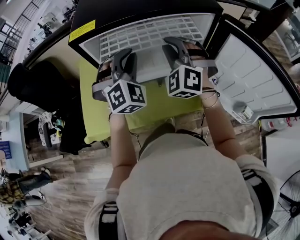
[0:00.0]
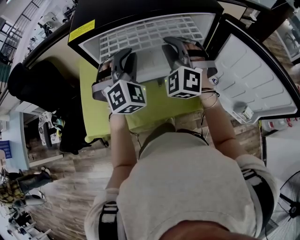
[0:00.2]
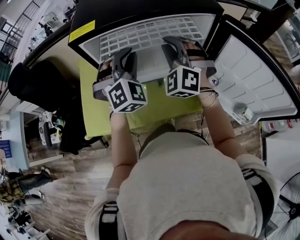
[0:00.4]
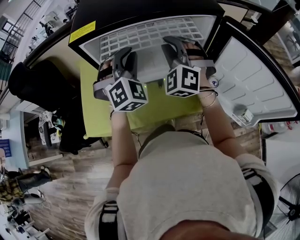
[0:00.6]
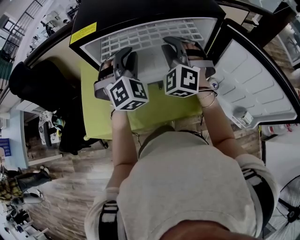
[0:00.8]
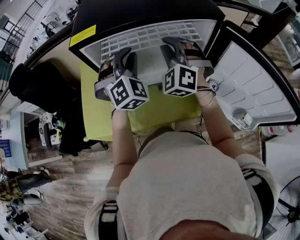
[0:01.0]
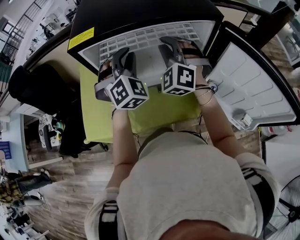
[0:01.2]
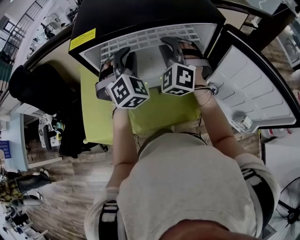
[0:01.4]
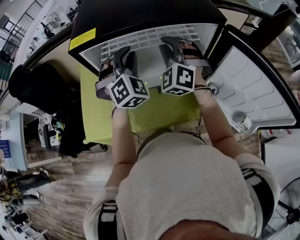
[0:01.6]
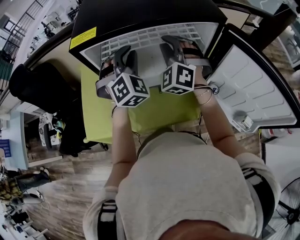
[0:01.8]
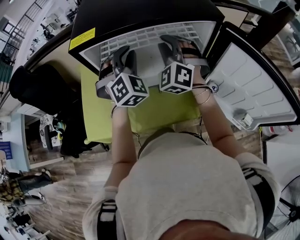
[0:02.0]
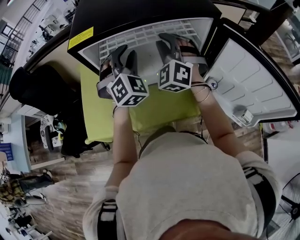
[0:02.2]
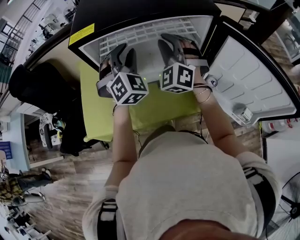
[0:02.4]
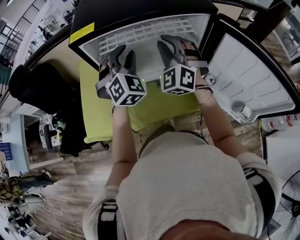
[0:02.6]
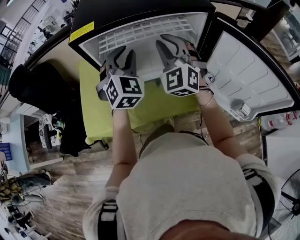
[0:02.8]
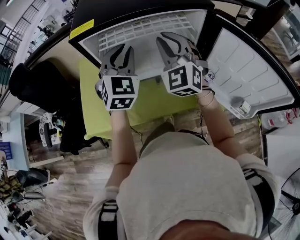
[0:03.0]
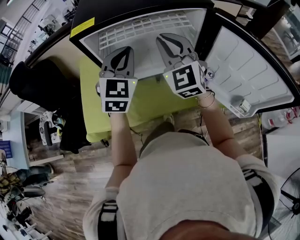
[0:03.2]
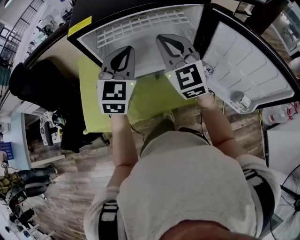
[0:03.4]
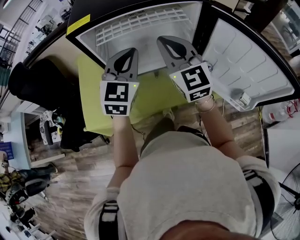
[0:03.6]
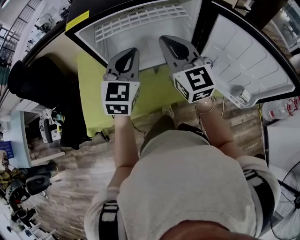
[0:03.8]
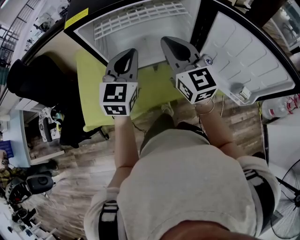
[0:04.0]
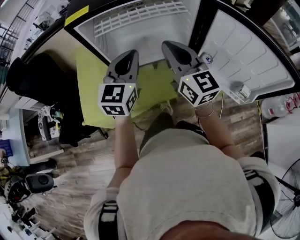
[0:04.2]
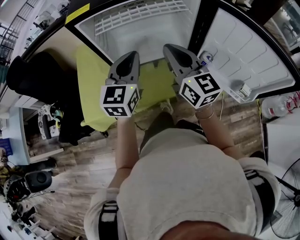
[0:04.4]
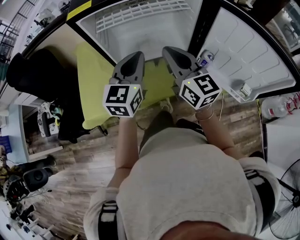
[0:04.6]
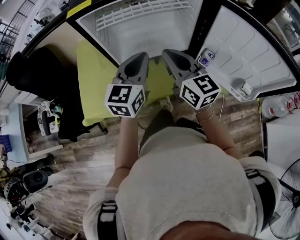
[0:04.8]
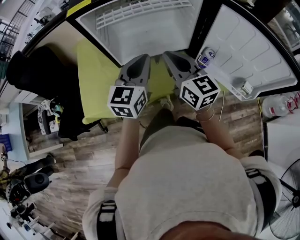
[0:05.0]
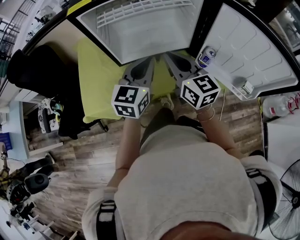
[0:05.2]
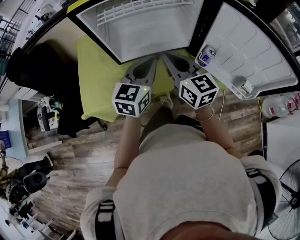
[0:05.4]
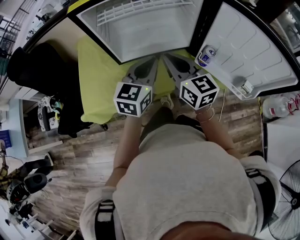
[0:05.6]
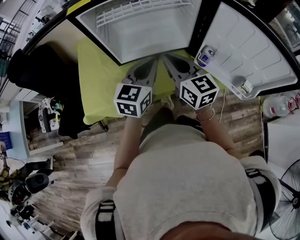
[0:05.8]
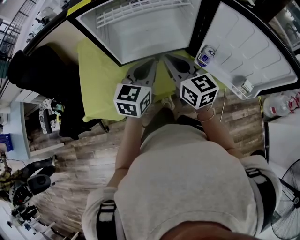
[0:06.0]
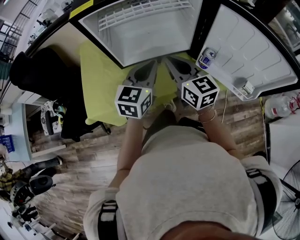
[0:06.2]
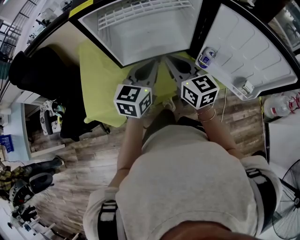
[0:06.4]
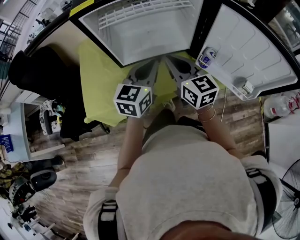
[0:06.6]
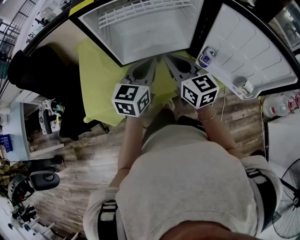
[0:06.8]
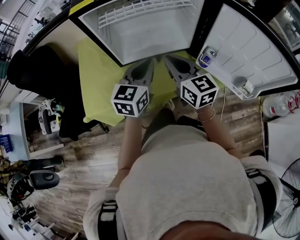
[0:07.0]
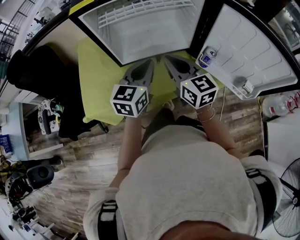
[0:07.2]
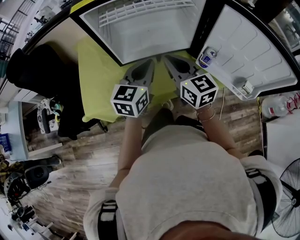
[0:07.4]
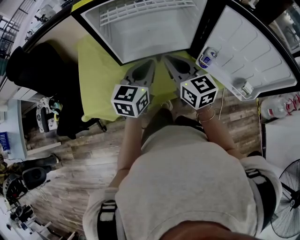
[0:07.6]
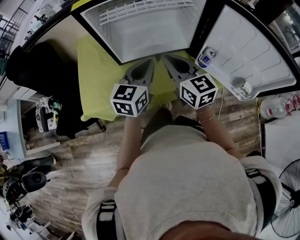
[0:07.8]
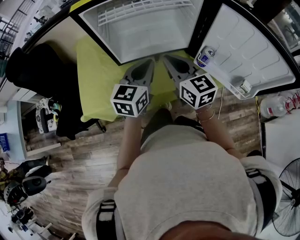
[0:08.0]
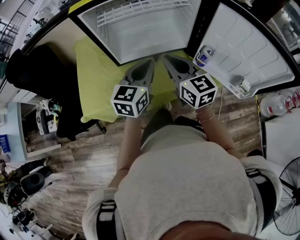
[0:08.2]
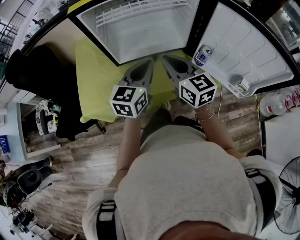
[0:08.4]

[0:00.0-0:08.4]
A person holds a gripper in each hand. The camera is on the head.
0:00.0 to 0:01.4: There are only small adjustments of the grippers.
0:01.4 to 0:02.8: The right gripper goes some 5 cm backward, and rotates roughly 20 degrees.
0:02.8 to 0:04.2: Both grippers move backward, some 10 cm. The right gripper rotates around the line of its fingers by approximately 50 degrees, clockwise from behind, while the left gripper rotates some 40 degrees, and closes its fingers.
0:04.2 to 0:05.6: Both grippers travel together downward, roughly 5 cm.
0:05.6 to 0:08.4: The grippers stay close to where they were, moving slightly.

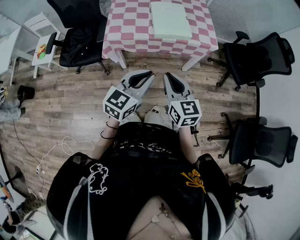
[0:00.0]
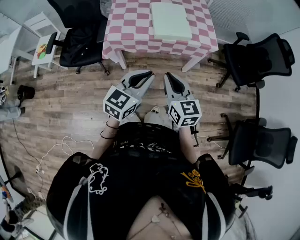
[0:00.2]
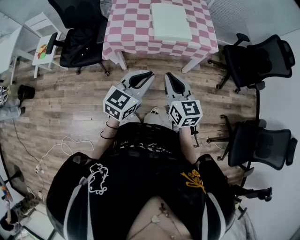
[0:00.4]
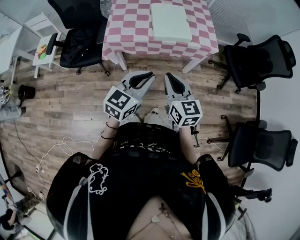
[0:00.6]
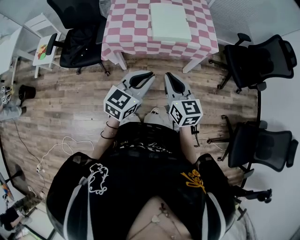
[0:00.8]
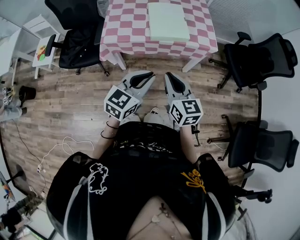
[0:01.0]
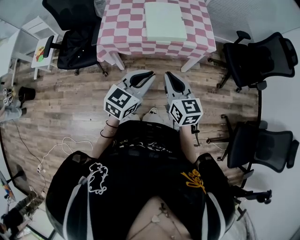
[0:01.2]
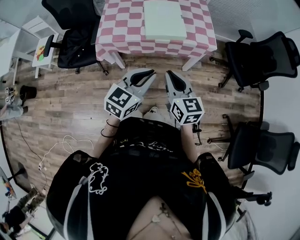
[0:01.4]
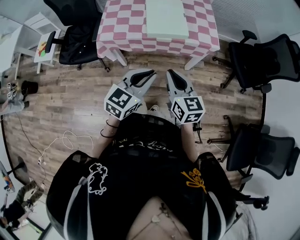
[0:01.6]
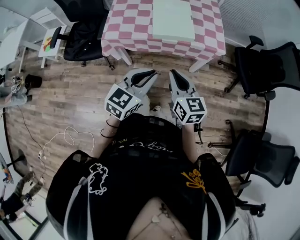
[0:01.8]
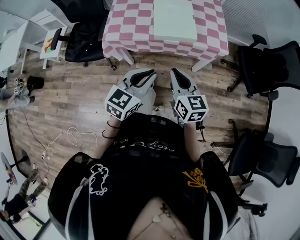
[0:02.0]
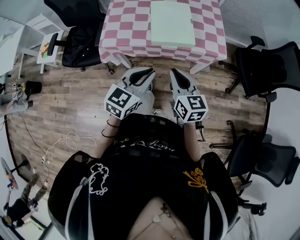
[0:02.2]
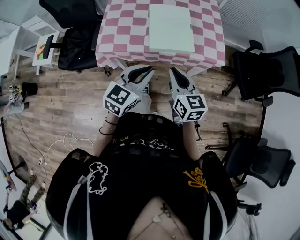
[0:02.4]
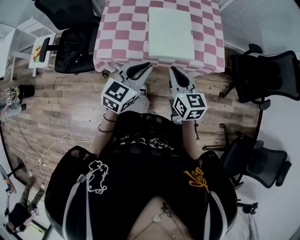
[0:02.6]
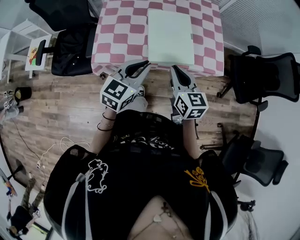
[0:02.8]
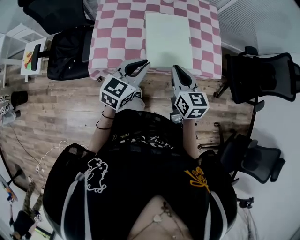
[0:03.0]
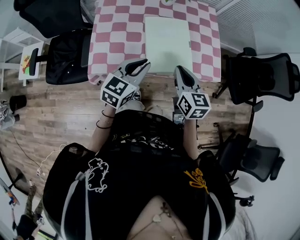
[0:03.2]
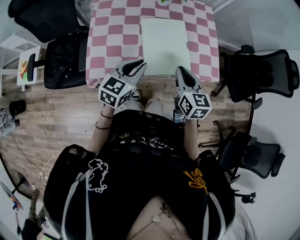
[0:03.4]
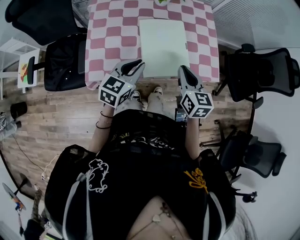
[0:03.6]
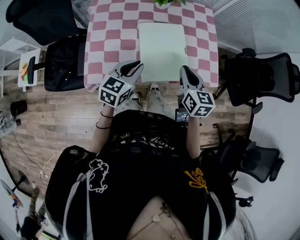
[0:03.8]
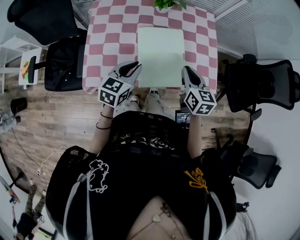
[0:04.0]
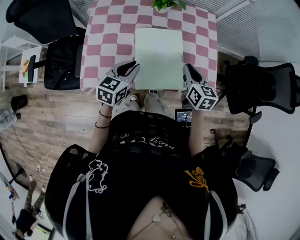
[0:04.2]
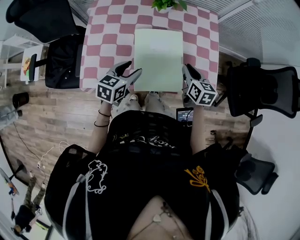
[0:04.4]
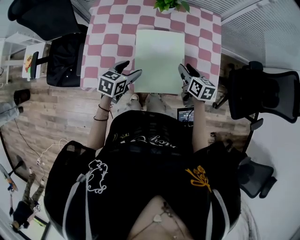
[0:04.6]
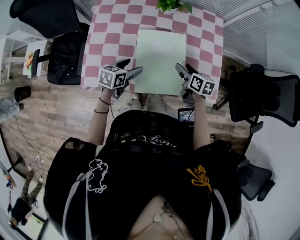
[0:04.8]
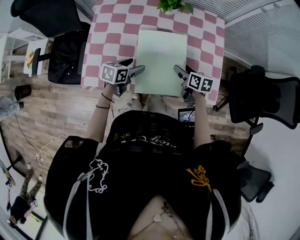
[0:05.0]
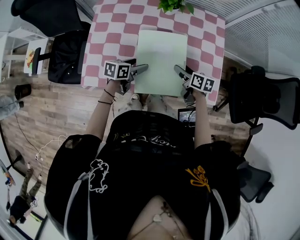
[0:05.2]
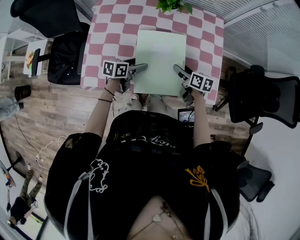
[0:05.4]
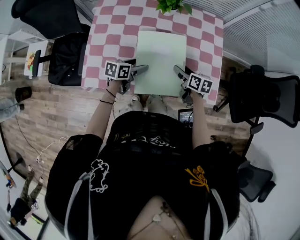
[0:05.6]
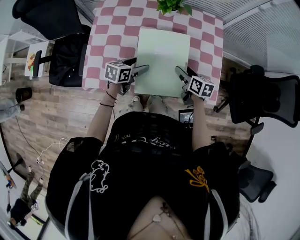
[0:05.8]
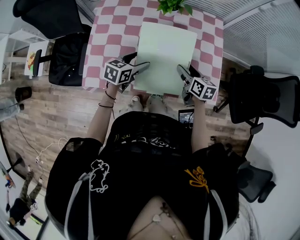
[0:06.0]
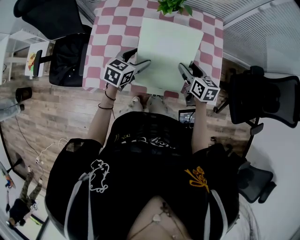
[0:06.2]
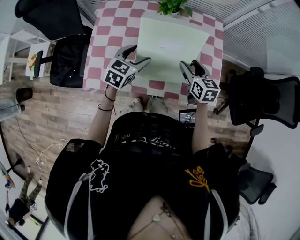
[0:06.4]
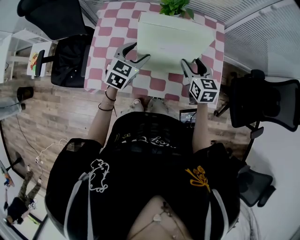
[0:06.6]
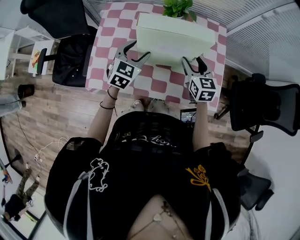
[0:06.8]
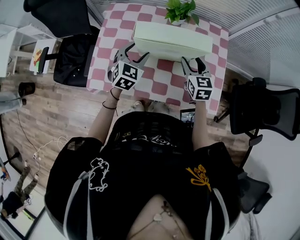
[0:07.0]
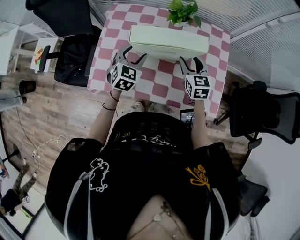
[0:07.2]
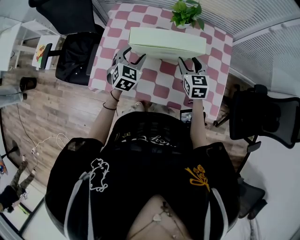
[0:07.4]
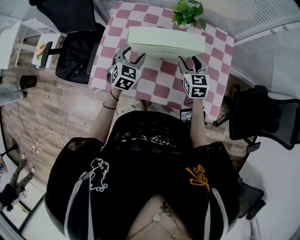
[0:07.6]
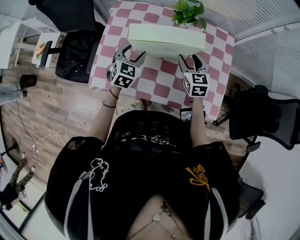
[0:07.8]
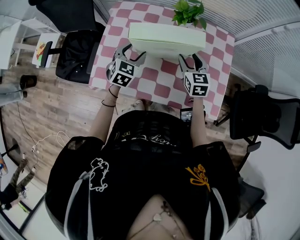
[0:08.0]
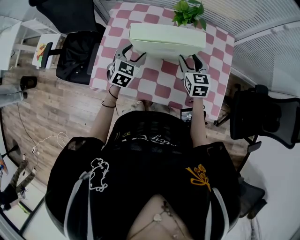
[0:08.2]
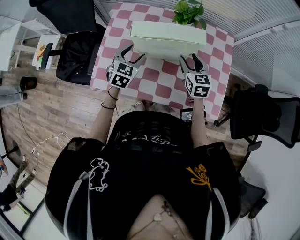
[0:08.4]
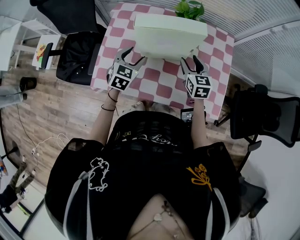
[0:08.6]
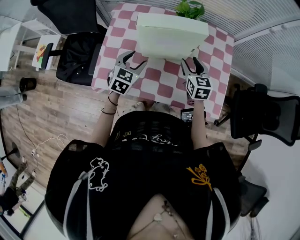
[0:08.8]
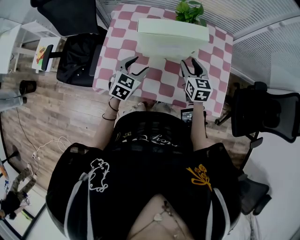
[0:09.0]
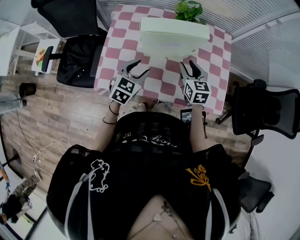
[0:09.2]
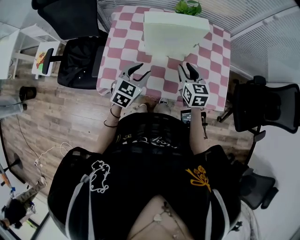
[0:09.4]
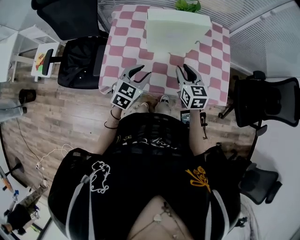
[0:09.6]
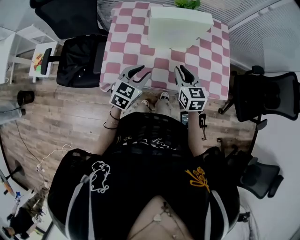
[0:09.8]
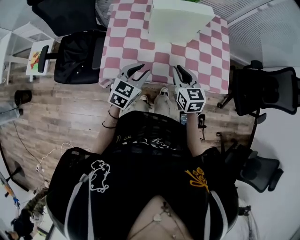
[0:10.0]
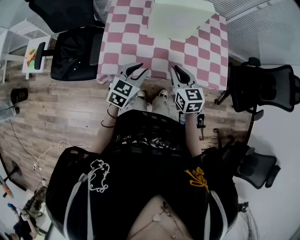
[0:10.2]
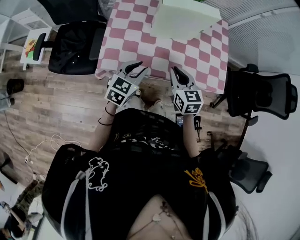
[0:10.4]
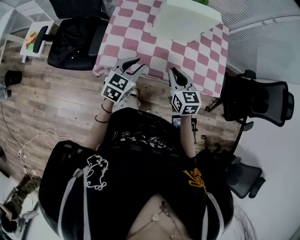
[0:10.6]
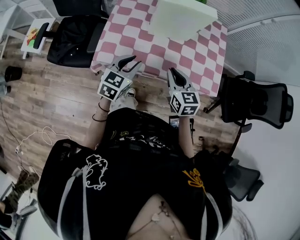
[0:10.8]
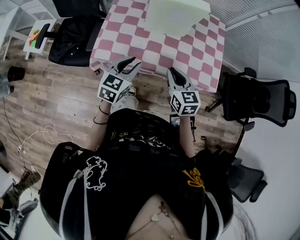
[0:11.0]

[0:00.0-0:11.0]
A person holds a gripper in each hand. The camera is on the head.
0:00.0 to 0:01.6: The two grippers go roughly 10 cm to the right and forward.
0:01.6 to 0:03.2: Both grippers move forward, about 30 cm.
0:03.2 to 0:04.8: The left gripper moves downward and forward, roughly 20 cm, changes its angle by approximately 30 degrees, and opens its fingers; the right gripper is displaced forward and downward by roughly 25 cm, turns by some 30 degrees, and opens its fingers.
0:04.8 to 0:06.2: The grippers both shift upward by roughly 5 cm.
0:06.2 to 0:07.8: The right gripper travels forward and to the left by some 10 cm, and swivels about 30 degrees. The left gripper travels to the left and forward by about 10 cm, and swivels some 30 degrees.
0:07.8 to 0:09.4: Both grippers move backward, about 10 cm.
0:09.4 to 0:11.0: Both grippers travel together backward, about 15 cm. The right gripper closes its fingers.

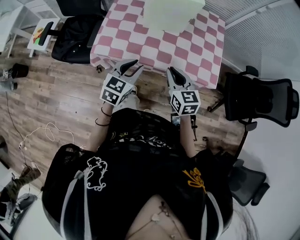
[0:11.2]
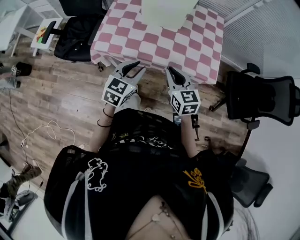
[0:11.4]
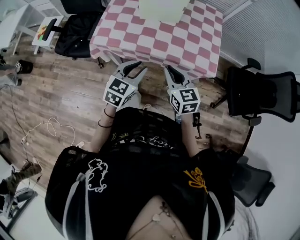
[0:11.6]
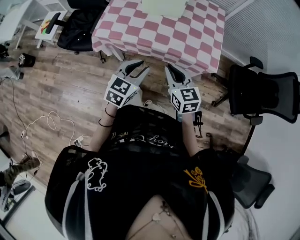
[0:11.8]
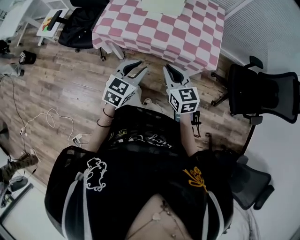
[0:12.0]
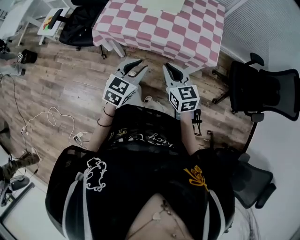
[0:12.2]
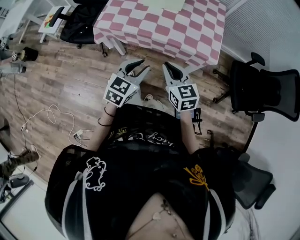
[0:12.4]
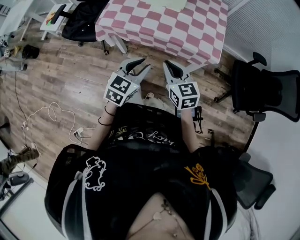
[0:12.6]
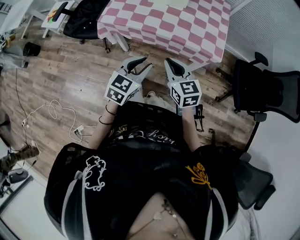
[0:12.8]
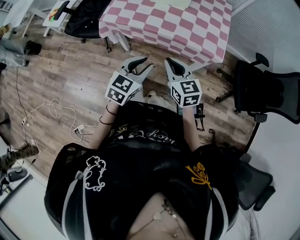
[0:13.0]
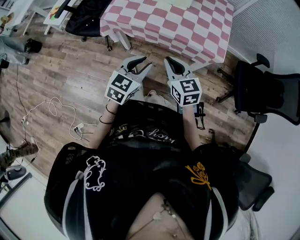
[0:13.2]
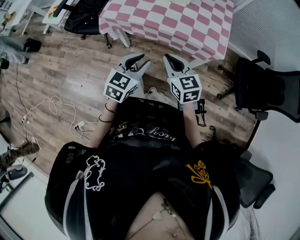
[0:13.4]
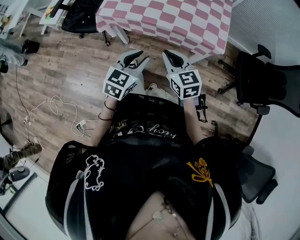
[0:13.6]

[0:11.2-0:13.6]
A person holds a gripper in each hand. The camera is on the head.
0:11.2 to 0:12.4: The left gripper is displaced backward and to the right by roughly 20 cm; the right gripper shifts approximately 15 cm backward.
0:12.4 to 0:13.6: The grippers move only a little.

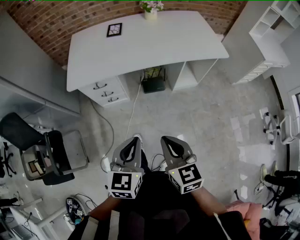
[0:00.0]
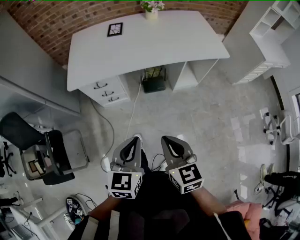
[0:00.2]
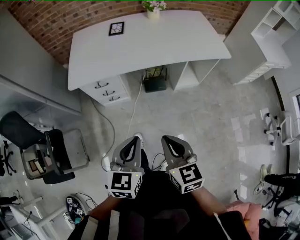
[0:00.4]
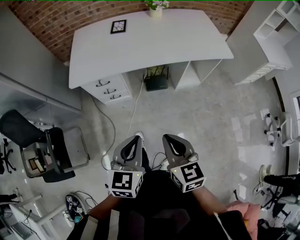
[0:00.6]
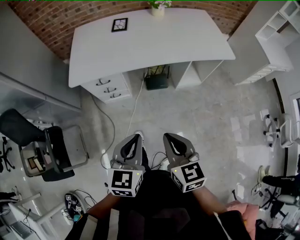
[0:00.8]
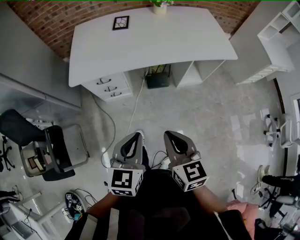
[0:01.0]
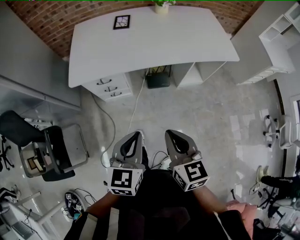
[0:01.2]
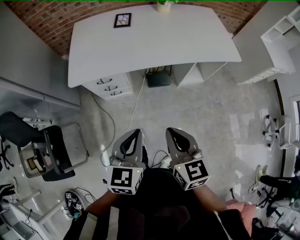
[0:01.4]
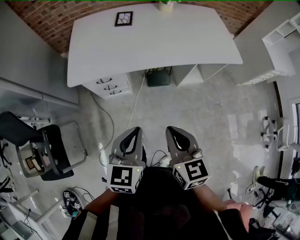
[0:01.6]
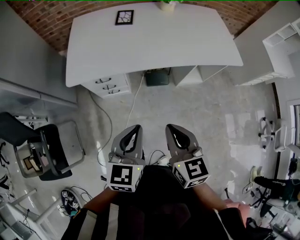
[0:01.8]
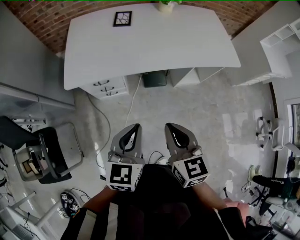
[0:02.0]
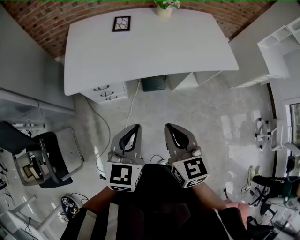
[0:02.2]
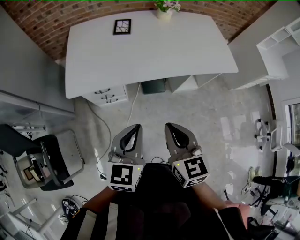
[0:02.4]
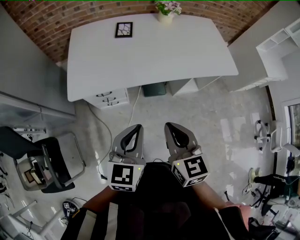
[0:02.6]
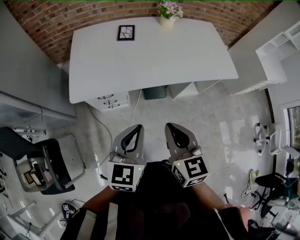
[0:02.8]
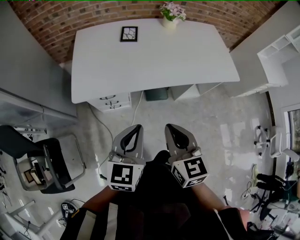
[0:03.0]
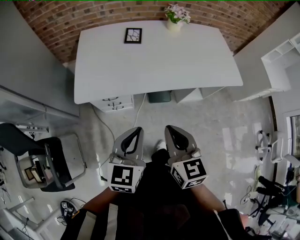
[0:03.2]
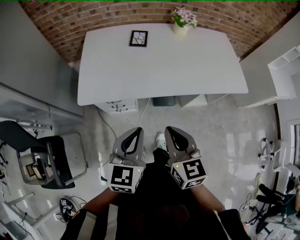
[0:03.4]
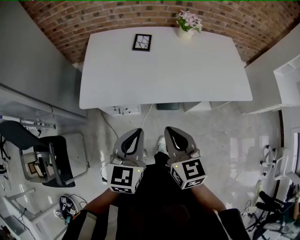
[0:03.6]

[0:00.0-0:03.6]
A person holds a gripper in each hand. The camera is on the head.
0:00.0 to 0:01.8: The left gripper travels forward and to the left by some 10 cm; the right gripper heads forward, covering some 10 cm.
0:01.8 to 0:03.6: The two grippers go approximately 15 cm forward.
